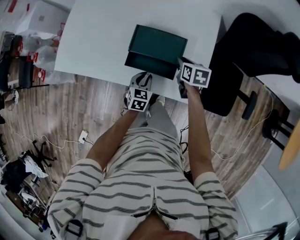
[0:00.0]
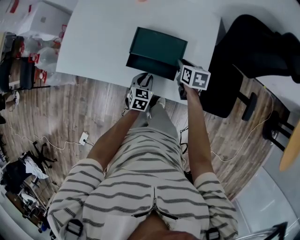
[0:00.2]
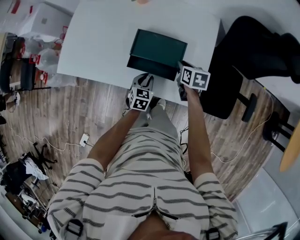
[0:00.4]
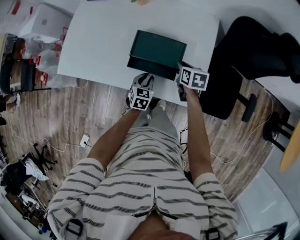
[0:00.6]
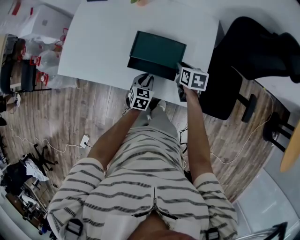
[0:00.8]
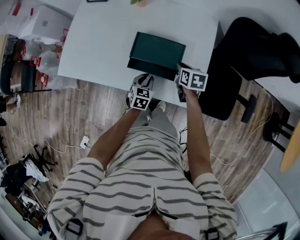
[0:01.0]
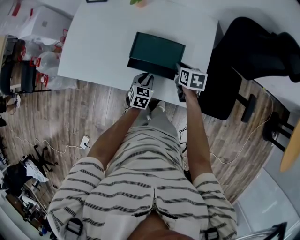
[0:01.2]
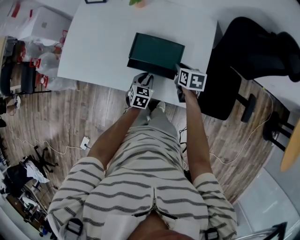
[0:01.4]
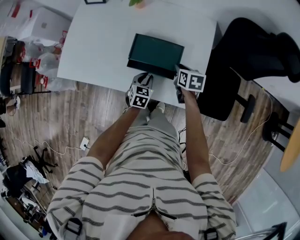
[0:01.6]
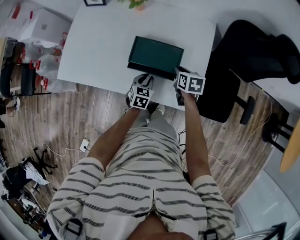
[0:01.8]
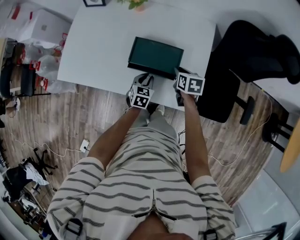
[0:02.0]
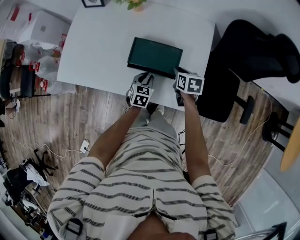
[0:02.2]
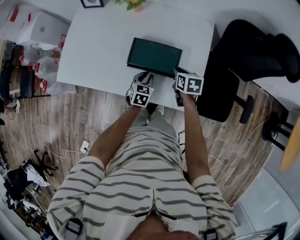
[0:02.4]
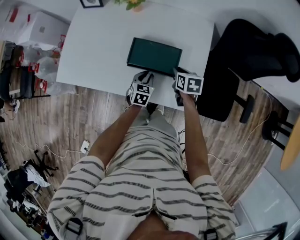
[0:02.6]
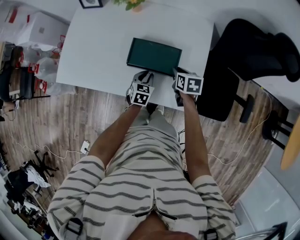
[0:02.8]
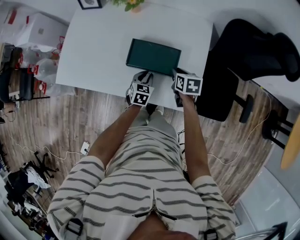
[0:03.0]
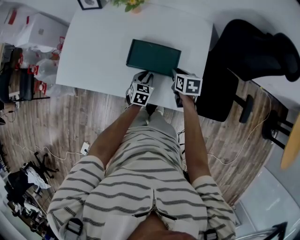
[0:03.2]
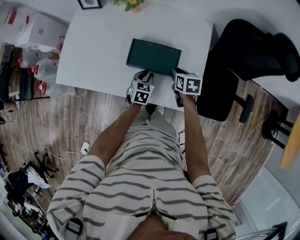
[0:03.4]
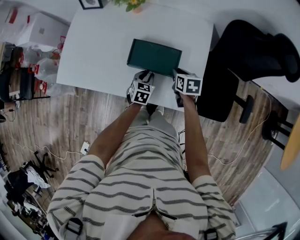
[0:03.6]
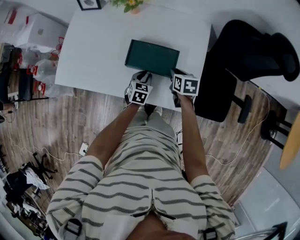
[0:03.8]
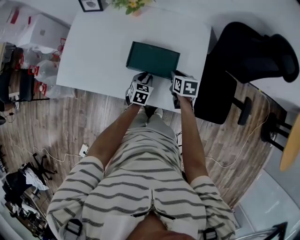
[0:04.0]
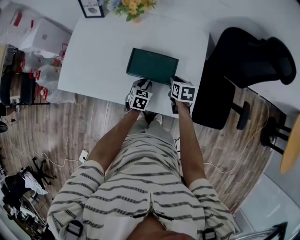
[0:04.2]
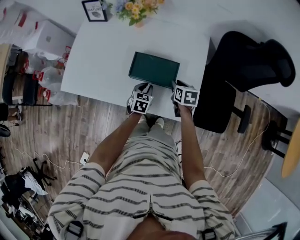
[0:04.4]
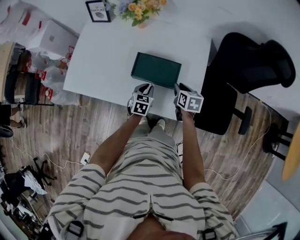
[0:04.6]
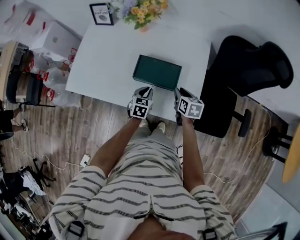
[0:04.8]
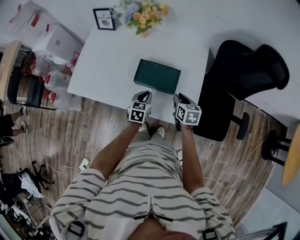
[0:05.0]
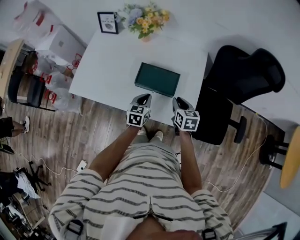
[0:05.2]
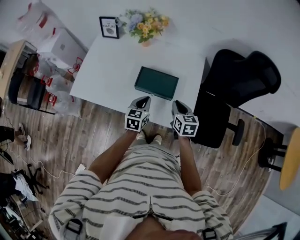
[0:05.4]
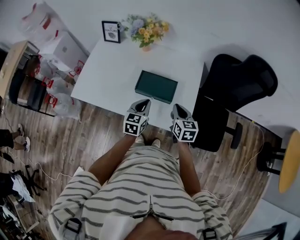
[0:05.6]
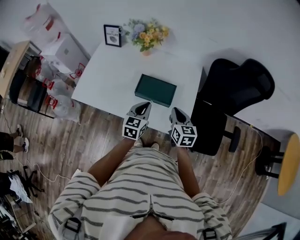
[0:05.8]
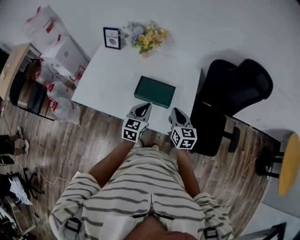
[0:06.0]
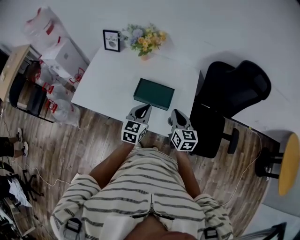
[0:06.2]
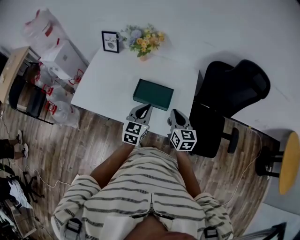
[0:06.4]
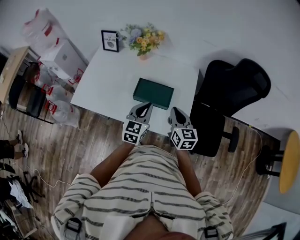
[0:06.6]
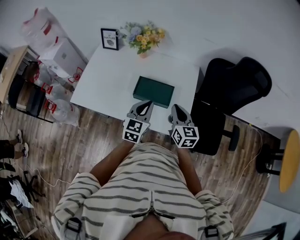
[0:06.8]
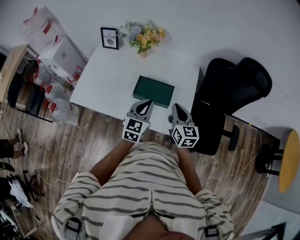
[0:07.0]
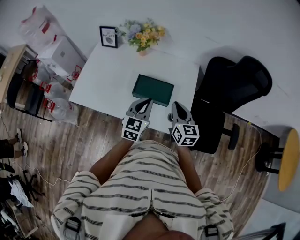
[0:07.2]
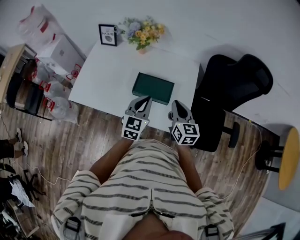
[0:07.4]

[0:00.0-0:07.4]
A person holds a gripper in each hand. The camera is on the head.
0:00.0 to 0:01.4: There are only small adjustments of the grippers.
0:01.4 to 0:03.0: There are only small adjustments of the grippers.
0:03.0 to 0:04.4: Neither gripper changes place.
0:04.4 to 0:06.0: The left gripper is displaced upward by approximately 25 cm, and turns by approximately 20 degrees; the right gripper goes roughly 20 cm upward and backward, rotates about 30 degrees, and closes its fingers.
0:06.0 to 0:07.4: The grippers move only a little.

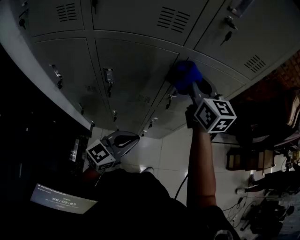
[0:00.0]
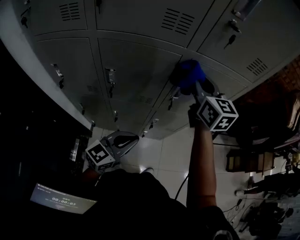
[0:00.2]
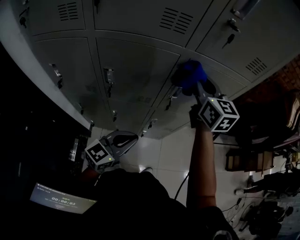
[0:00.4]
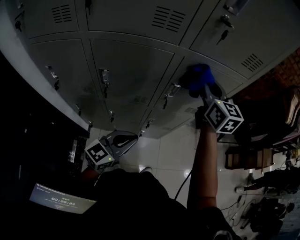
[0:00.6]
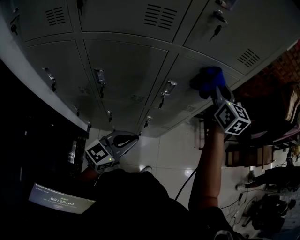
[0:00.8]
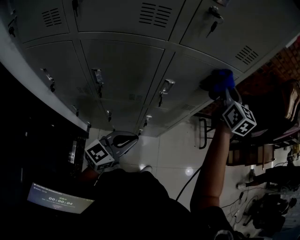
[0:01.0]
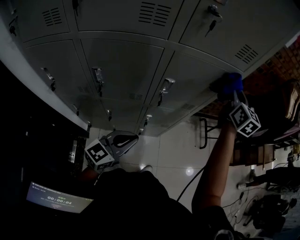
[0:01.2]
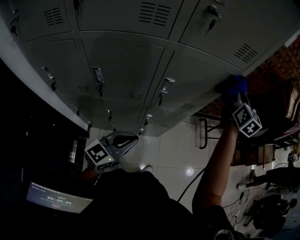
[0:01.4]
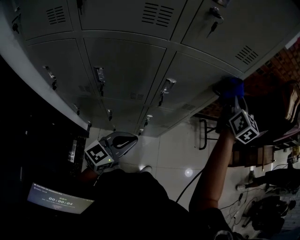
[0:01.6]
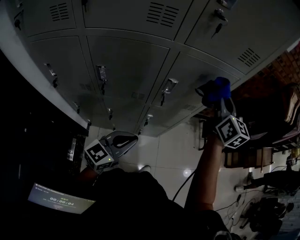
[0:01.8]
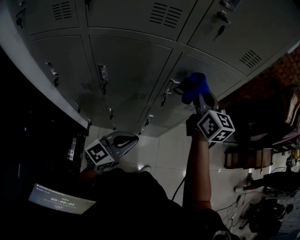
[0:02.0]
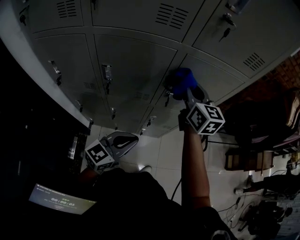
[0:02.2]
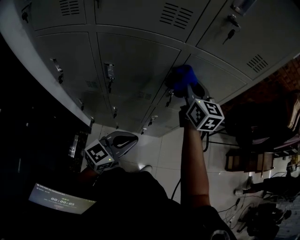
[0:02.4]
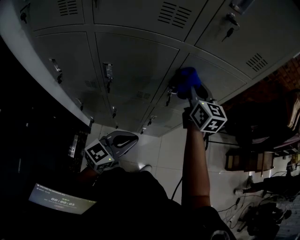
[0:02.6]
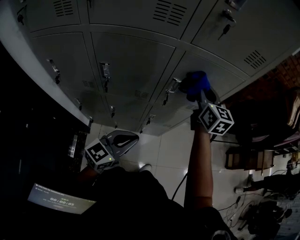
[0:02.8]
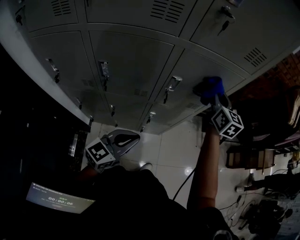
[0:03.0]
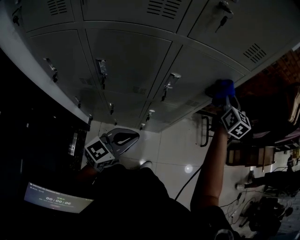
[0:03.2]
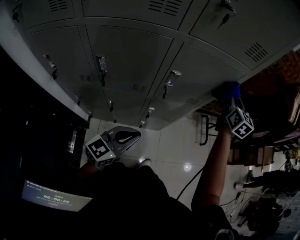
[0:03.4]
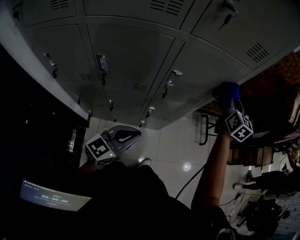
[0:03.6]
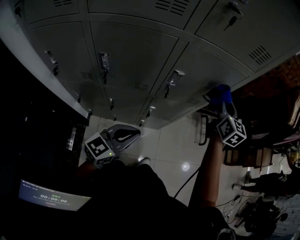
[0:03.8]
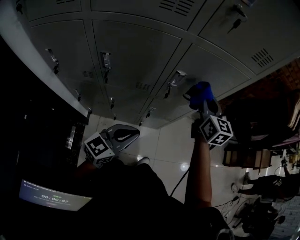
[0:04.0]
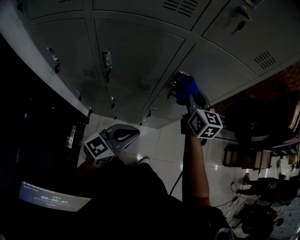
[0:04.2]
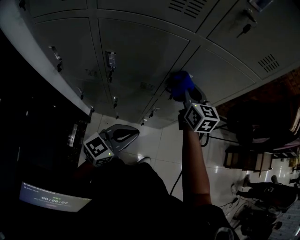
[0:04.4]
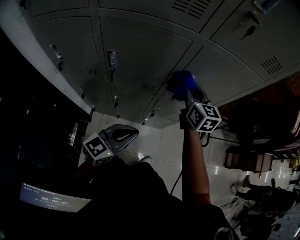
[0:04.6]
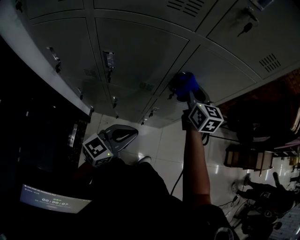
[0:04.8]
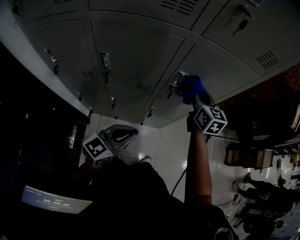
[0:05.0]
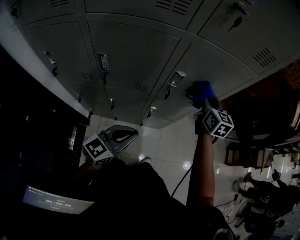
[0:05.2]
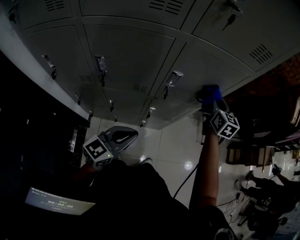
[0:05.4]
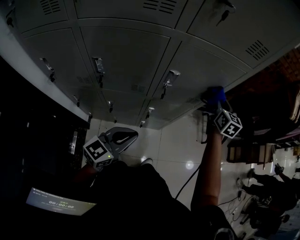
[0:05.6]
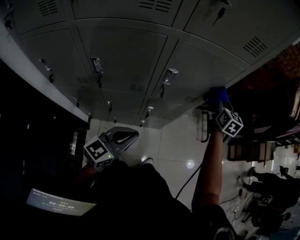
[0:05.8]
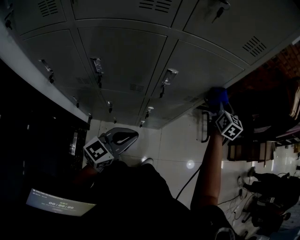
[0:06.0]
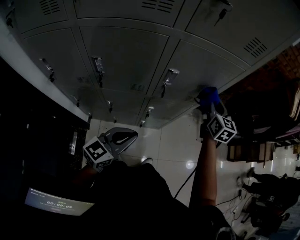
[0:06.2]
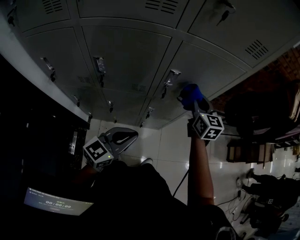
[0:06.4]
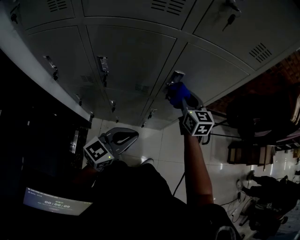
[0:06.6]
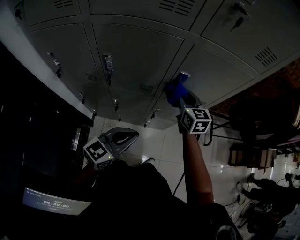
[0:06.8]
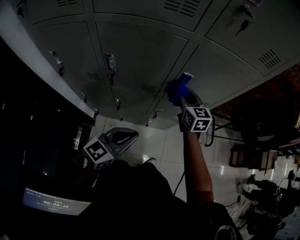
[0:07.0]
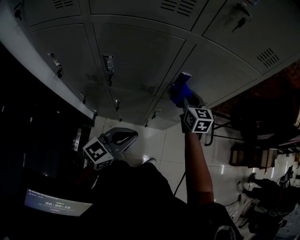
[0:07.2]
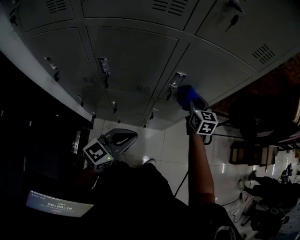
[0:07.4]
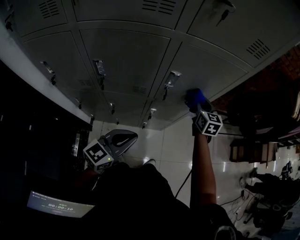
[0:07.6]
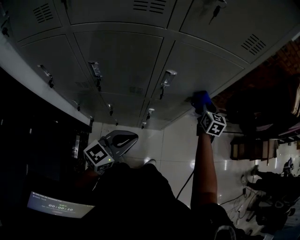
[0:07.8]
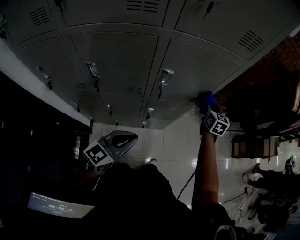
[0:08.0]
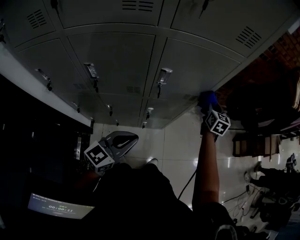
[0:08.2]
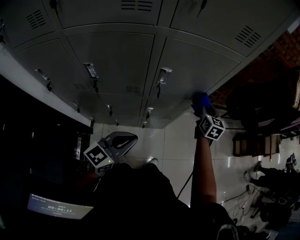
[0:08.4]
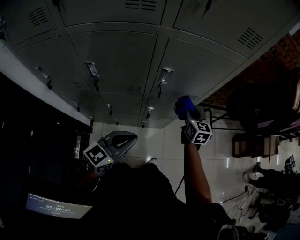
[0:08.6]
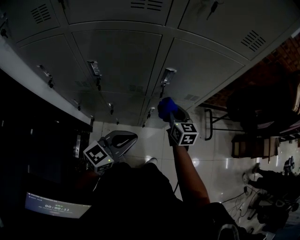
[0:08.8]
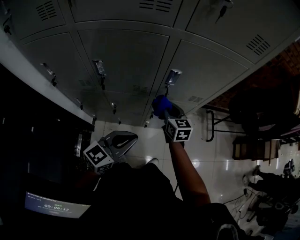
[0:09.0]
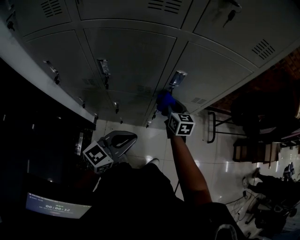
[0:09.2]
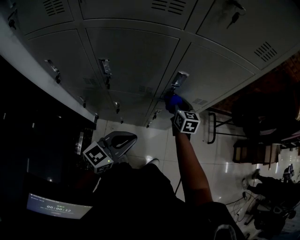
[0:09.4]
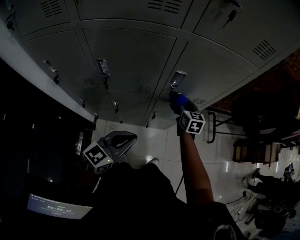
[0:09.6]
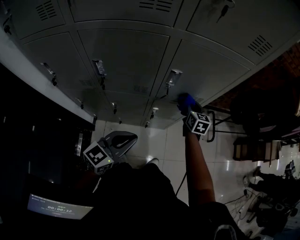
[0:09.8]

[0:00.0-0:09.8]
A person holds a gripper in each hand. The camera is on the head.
0:00.0 to 0:01.4: The right gripper moves to the right, some 25 cm, and swivels about 30 degrees.
0:01.4 to 0:02.8: The right gripper goes some 20 cm to the left and downward.
0:02.8 to 0:04.2: The right gripper moves downward, about 5 cm, and travels to the right and back again, some 15 cm each way.
0:04.2 to 0:05.6: The right gripper moves to the right and forward, approximately 20 cm.
0:05.6 to 0:07.0: The right gripper travels to the left by approximately 20 cm, and turns by some 20 degrees.
0:07.0 to 0:08.4: The right gripper is displaced to the right by some 20 cm, and swivels roughly 30 degrees.
0:08.4 to 0:09.8: The right gripper goes roughly 10 cm to the left and downward.

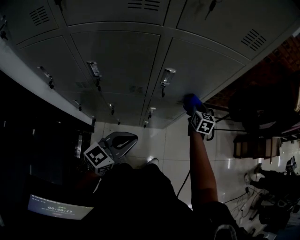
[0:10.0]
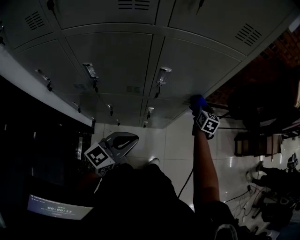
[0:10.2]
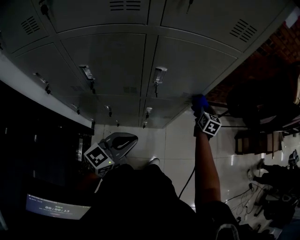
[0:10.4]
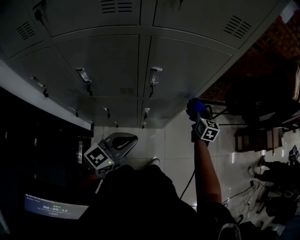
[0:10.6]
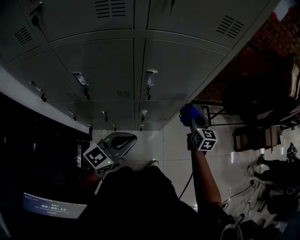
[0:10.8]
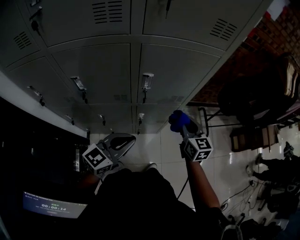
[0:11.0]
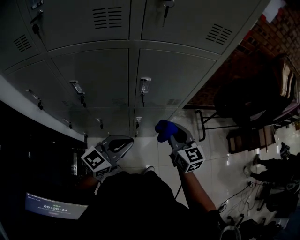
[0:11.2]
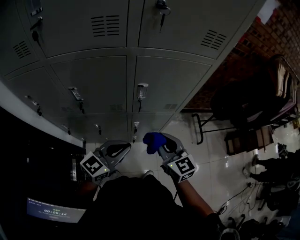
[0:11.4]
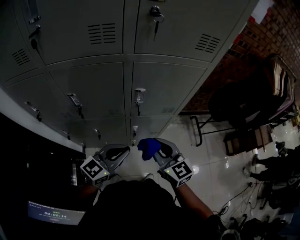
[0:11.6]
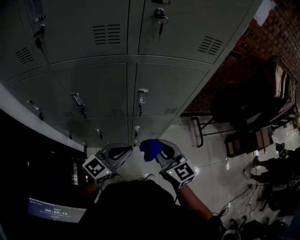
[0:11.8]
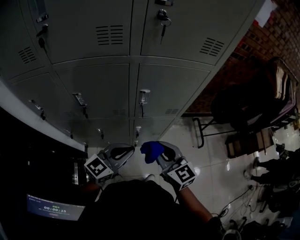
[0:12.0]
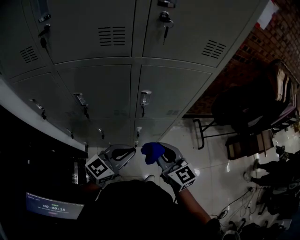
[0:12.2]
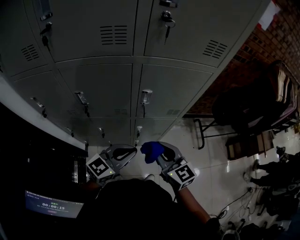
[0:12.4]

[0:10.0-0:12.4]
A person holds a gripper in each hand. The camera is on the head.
0:10.0 to 0:11.2: The right gripper is displaced backward and upward by some 20 cm, and rotates roughly 20 degrees.
0:11.2 to 0:12.4: The right gripper moves backward and to the left, approximately 10 cm.

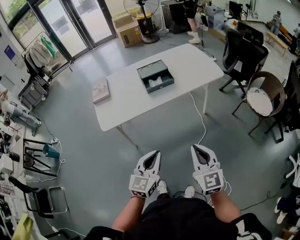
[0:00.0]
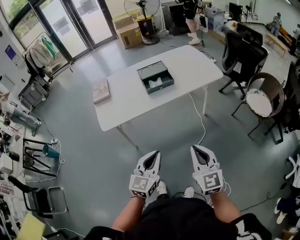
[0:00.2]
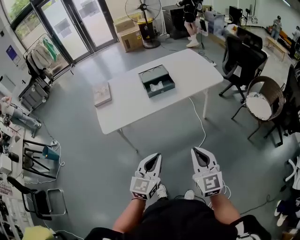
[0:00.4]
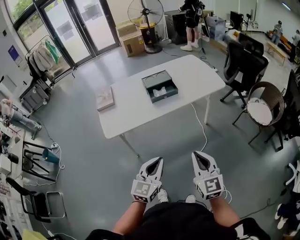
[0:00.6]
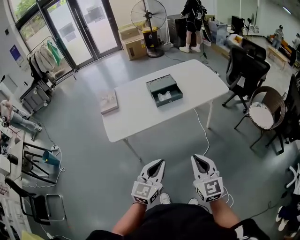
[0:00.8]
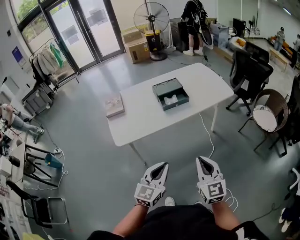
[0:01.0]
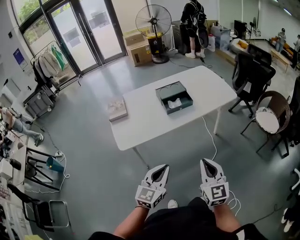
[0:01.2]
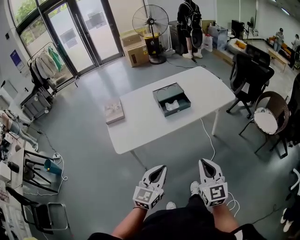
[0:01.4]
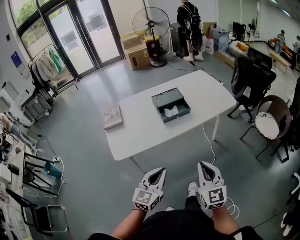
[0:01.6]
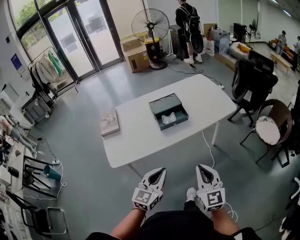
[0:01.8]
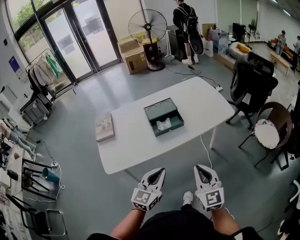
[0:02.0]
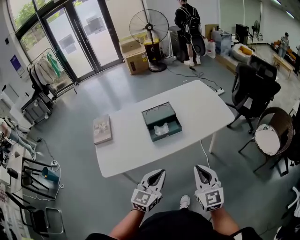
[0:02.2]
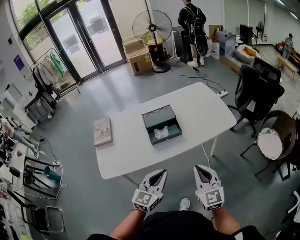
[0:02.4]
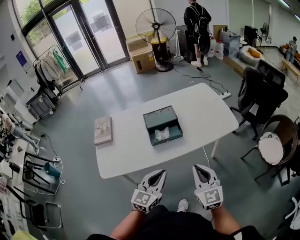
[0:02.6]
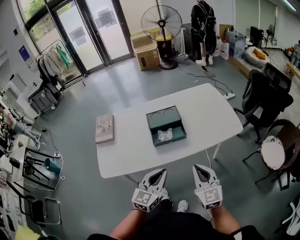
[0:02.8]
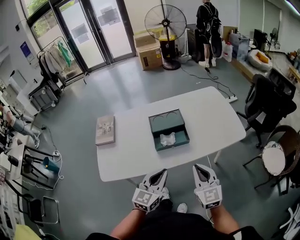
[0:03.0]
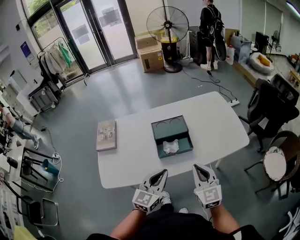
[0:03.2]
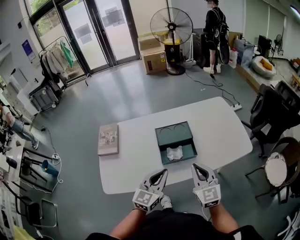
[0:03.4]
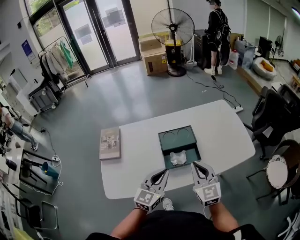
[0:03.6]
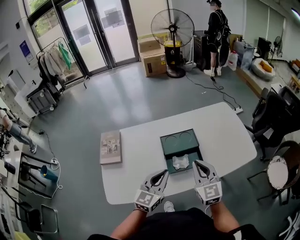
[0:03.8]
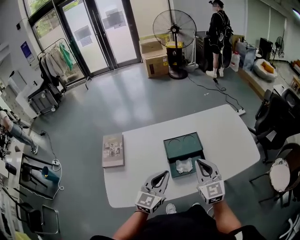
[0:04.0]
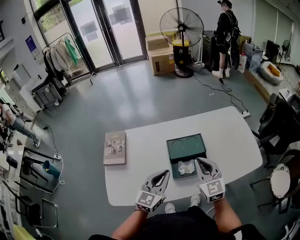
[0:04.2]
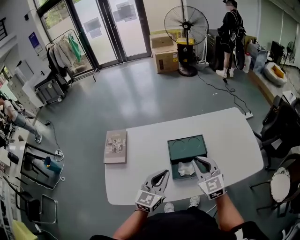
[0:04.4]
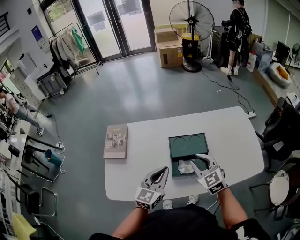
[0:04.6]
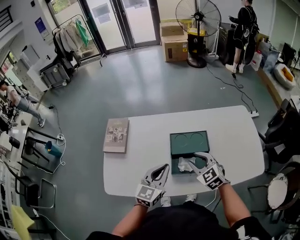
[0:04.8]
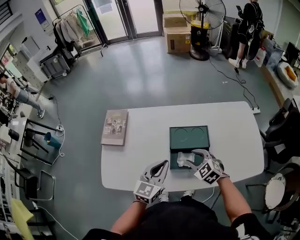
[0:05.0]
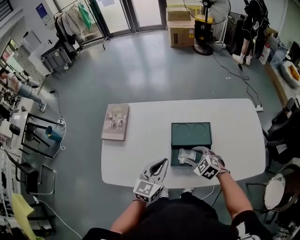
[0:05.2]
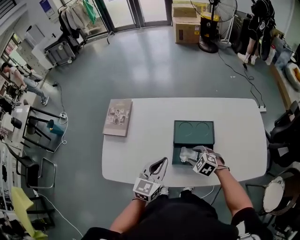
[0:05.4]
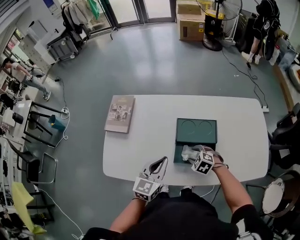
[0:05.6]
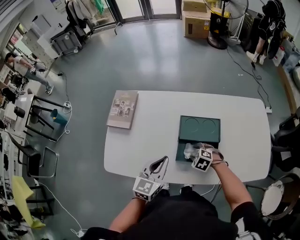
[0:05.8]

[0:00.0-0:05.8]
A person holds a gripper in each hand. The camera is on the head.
0:00.0 to 0:01.4: The grippers both shift to the left by roughly 10 cm.
0:01.4 to 0:02.8: The left gripper is displaced forward and to the right by approximately 25 cm. Meanwhile the right gripper goes approximately 25 cm forward.
0:02.8 to 0:04.4: The two grippers go roughly 30 cm forward and to the left.
0:04.4 to 0:05.8: The left gripper goes roughly 5 cm downward. The right gripper goes approximately 25 cm downward, tilts its fingers about 50 degrees downward, and opens its fingers.
